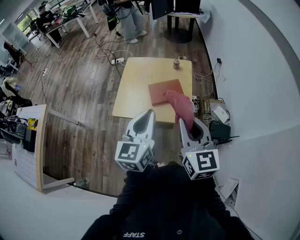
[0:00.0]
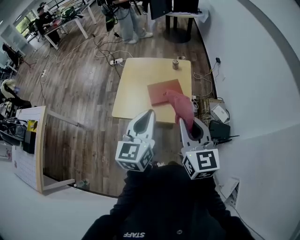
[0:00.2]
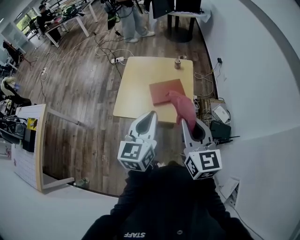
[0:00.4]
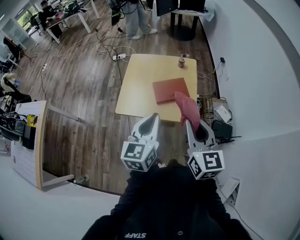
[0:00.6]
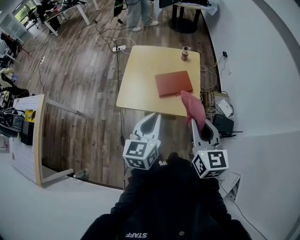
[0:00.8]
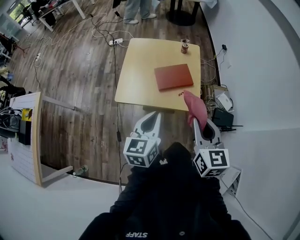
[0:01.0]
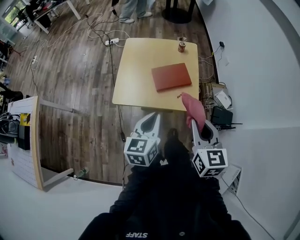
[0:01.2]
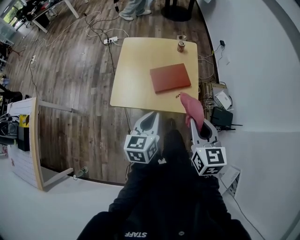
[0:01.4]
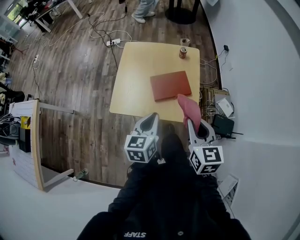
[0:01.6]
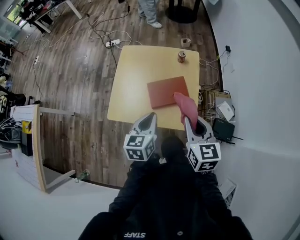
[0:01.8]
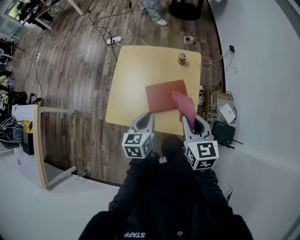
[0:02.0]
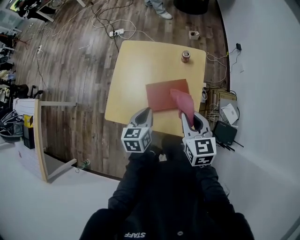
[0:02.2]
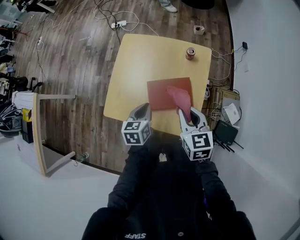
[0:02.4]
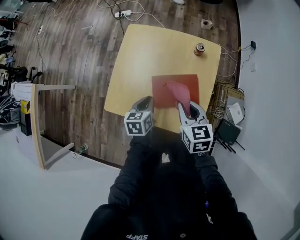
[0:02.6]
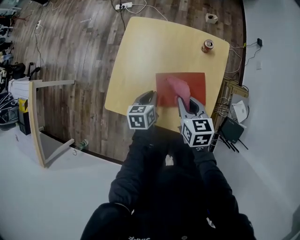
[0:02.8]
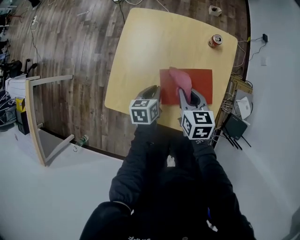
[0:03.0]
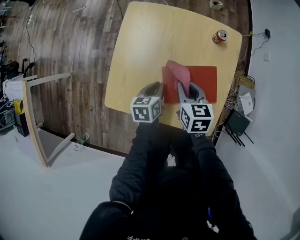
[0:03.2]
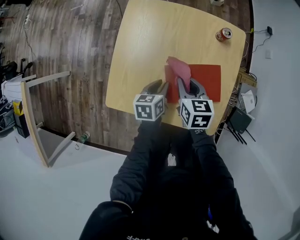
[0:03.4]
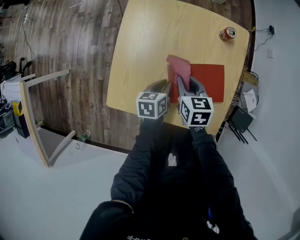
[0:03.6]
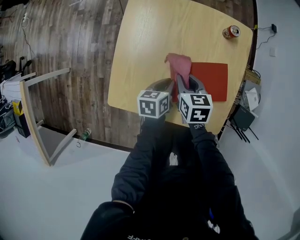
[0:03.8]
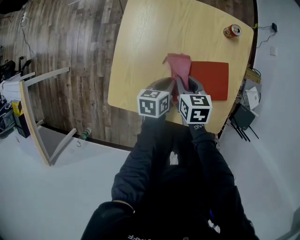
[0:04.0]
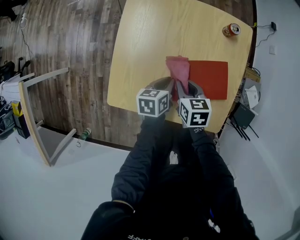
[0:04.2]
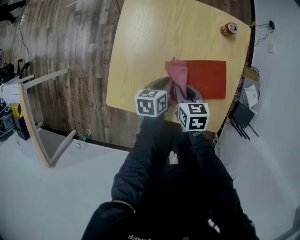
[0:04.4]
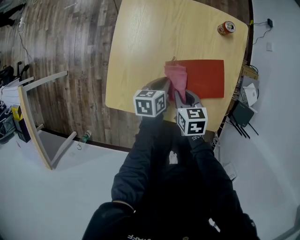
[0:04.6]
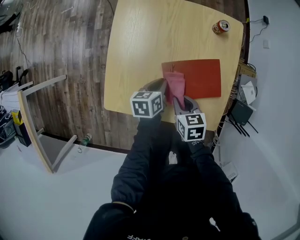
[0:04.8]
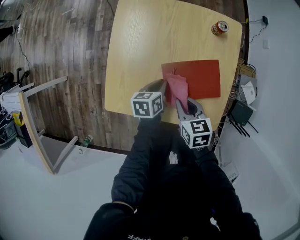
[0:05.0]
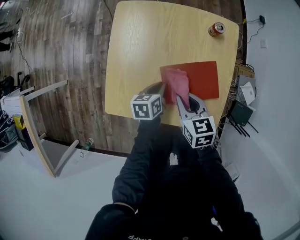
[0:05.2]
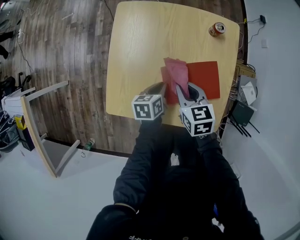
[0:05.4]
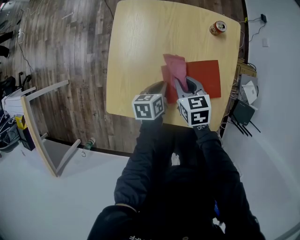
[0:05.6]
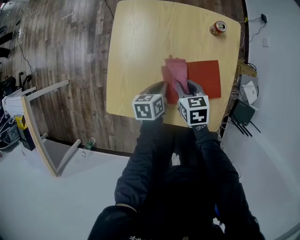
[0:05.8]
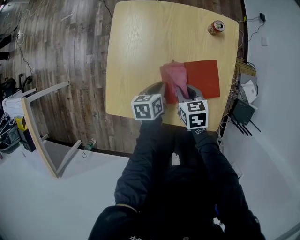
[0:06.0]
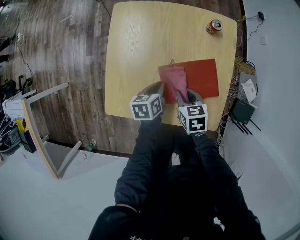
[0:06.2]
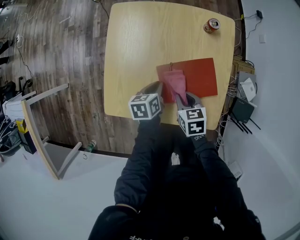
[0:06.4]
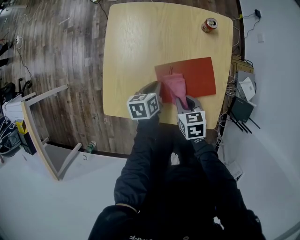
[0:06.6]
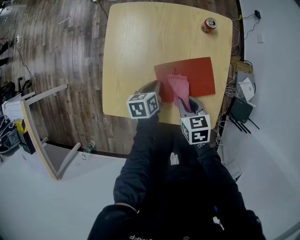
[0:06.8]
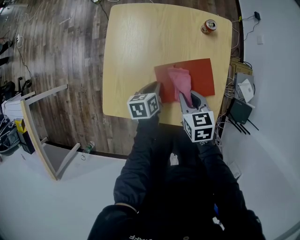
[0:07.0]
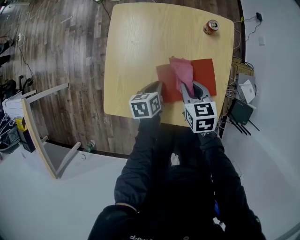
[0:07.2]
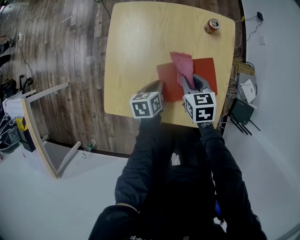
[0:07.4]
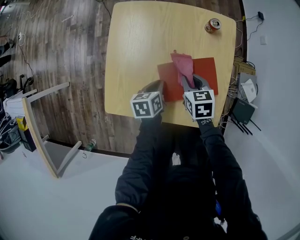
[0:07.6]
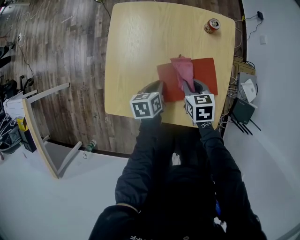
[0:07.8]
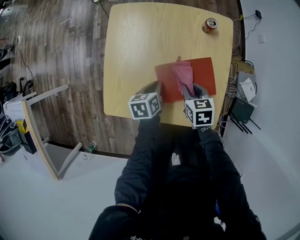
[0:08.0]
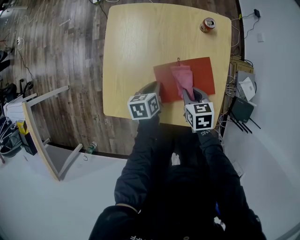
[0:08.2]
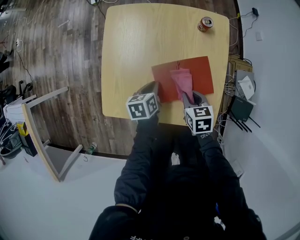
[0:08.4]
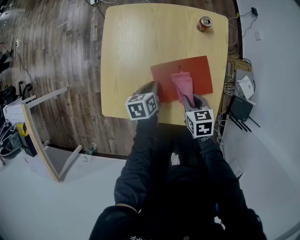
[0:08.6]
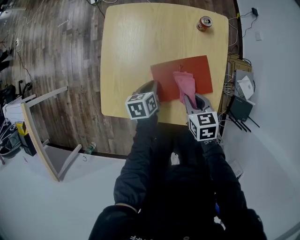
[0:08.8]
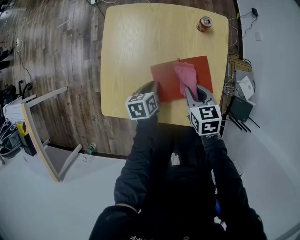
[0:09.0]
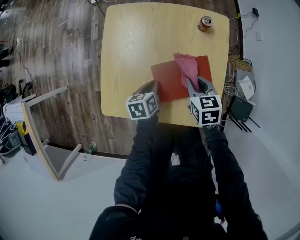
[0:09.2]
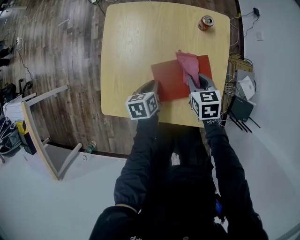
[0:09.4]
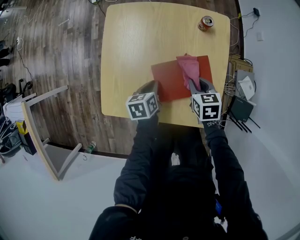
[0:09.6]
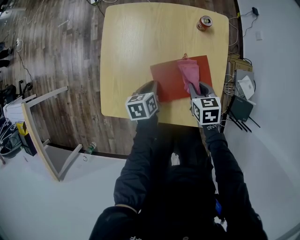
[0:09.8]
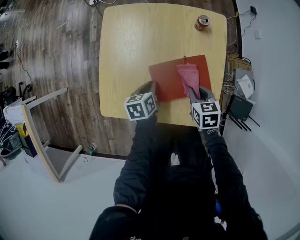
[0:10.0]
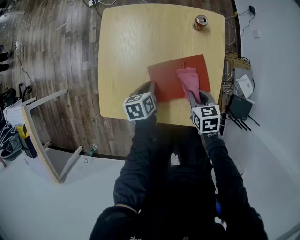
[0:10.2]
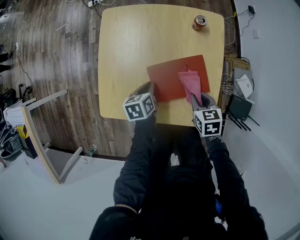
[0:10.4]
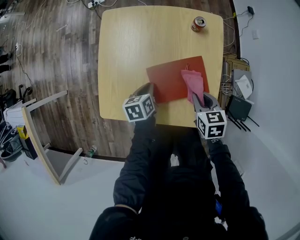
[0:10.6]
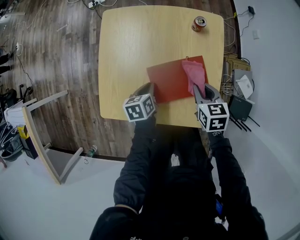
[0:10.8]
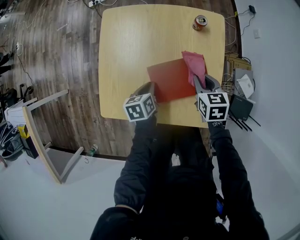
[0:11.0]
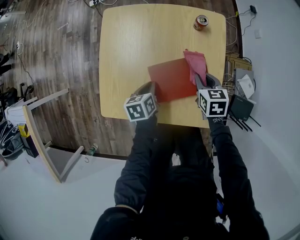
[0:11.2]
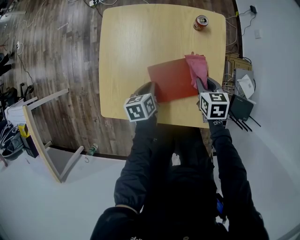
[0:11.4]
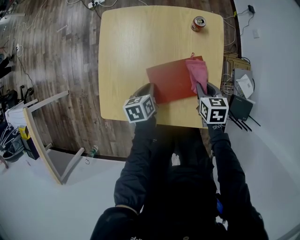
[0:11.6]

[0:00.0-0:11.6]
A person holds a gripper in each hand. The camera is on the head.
0:00.0 to 0:01.4: The grippers both shift downward by about 15 cm. The left gripper swivels roughly 20 degrees.
0:01.4 to 0:02.8: Both grippers travel together forward and downward, roughly 35 cm. The right gripper swivels approximately 20 degrees. The left gripper changes its angle by some 30 degrees.
0:02.8 to 0:04.4: The left gripper moves downward, approximately 10 cm; the right gripper shifts about 15 cm downward and to the left.
0:05.8 to 0:07.2: The right gripper ends up some 5 cm from where it was.
0:07.2 to 0:08.8: The right gripper moves backward, some 5 cm.
0:08.8 to 0:10.2: The right gripper moves some 10 cm forward and comes back.
0:10.2 to 0:11.6: The right gripper moves some 5 cm.

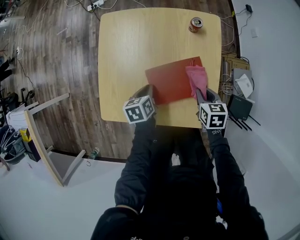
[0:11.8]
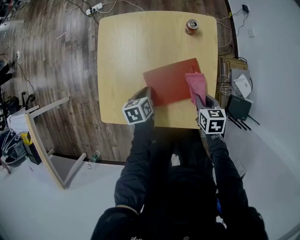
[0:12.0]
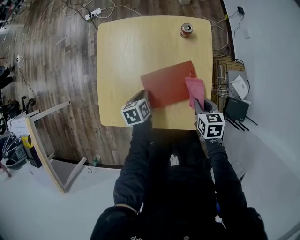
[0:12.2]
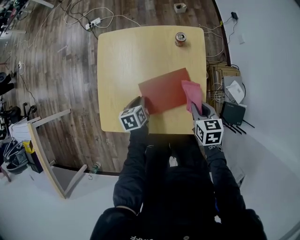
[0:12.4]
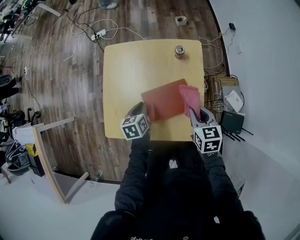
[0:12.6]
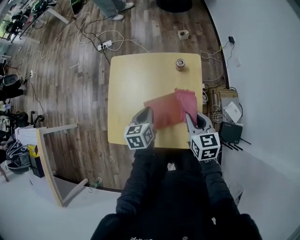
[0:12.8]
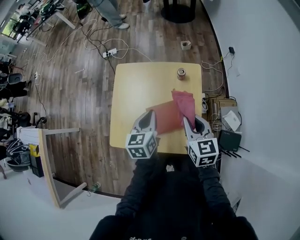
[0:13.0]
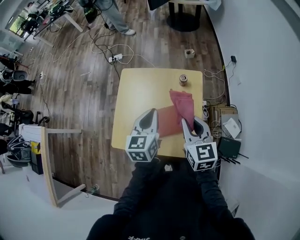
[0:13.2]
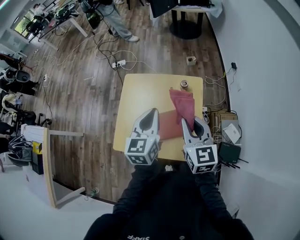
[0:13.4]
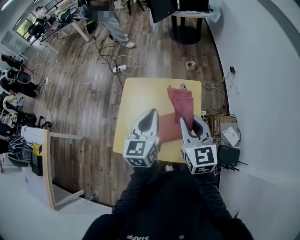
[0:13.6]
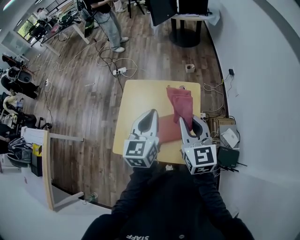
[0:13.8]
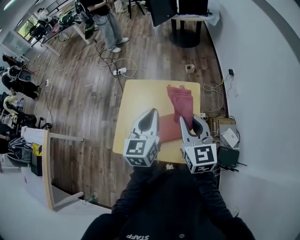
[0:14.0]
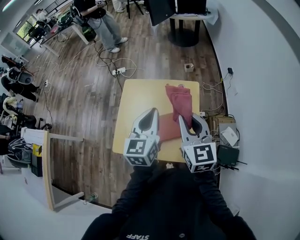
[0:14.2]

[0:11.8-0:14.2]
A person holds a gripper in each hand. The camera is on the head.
0:11.8 to 0:13.0: Both grippers move upward, some 25 cm. The right gripper rotates approximately 30 degrees. The left gripper swivels about 30 degrees.
0:13.0 to 0:14.2: Both grippers move upward, approximately 15 cm. The left gripper turns by about 20 degrees.

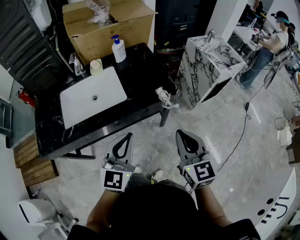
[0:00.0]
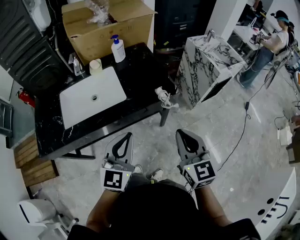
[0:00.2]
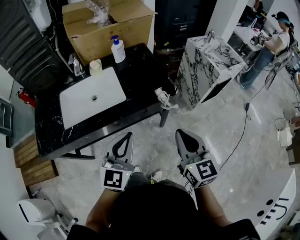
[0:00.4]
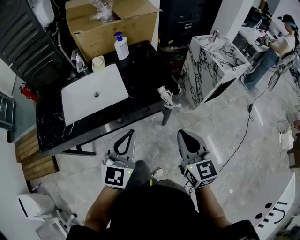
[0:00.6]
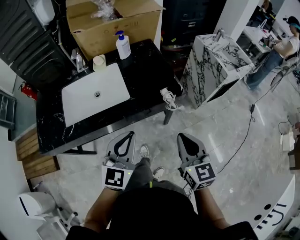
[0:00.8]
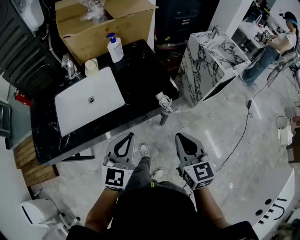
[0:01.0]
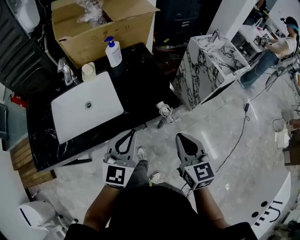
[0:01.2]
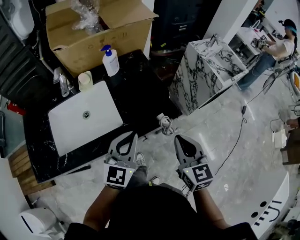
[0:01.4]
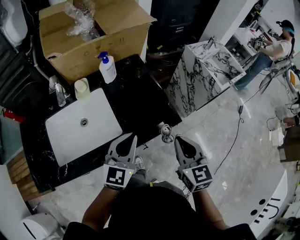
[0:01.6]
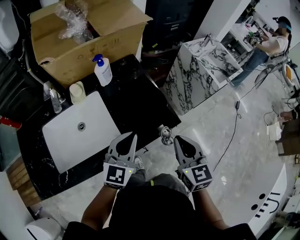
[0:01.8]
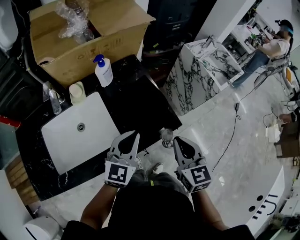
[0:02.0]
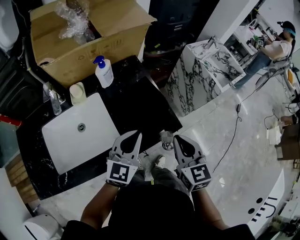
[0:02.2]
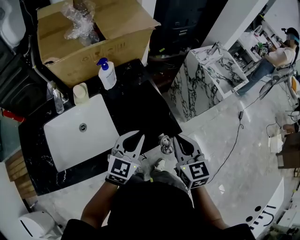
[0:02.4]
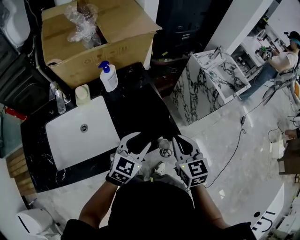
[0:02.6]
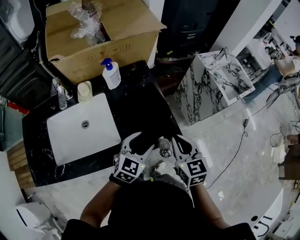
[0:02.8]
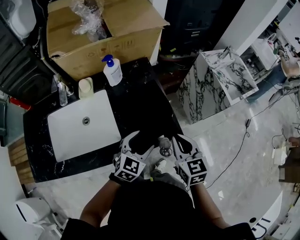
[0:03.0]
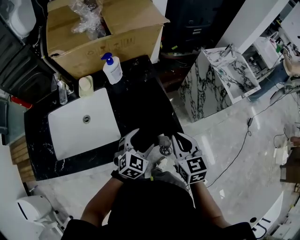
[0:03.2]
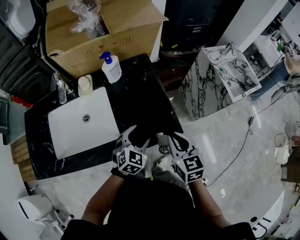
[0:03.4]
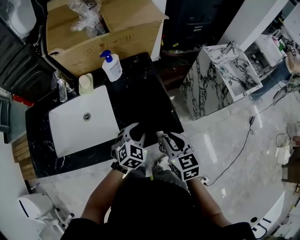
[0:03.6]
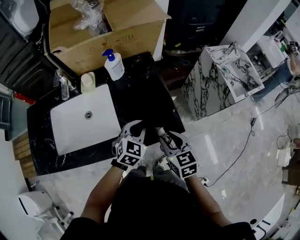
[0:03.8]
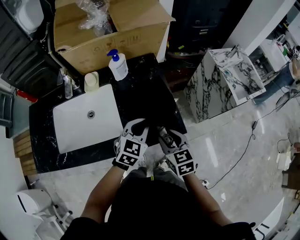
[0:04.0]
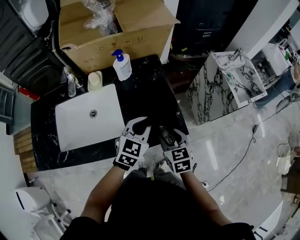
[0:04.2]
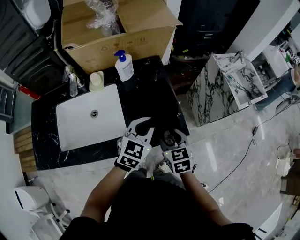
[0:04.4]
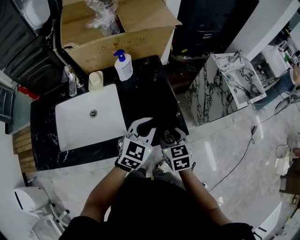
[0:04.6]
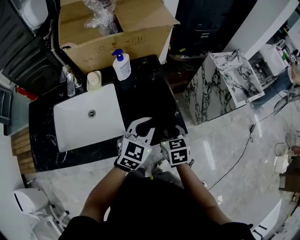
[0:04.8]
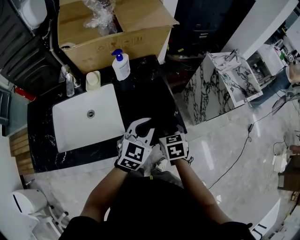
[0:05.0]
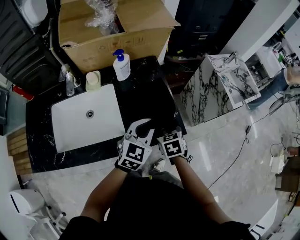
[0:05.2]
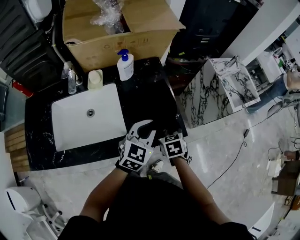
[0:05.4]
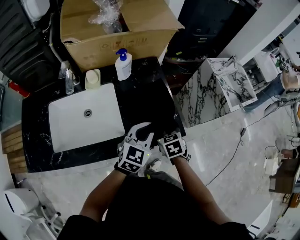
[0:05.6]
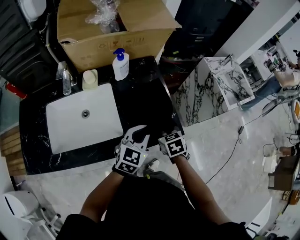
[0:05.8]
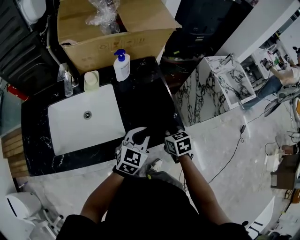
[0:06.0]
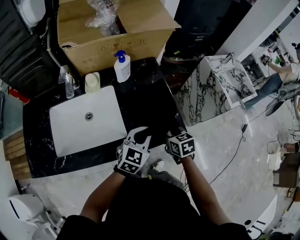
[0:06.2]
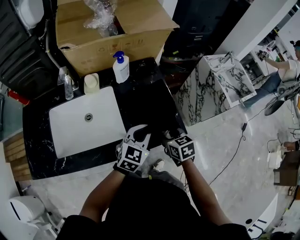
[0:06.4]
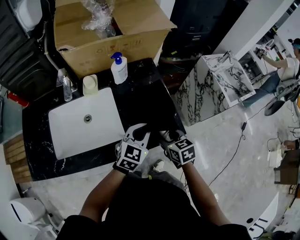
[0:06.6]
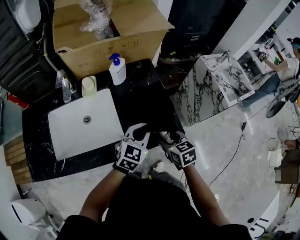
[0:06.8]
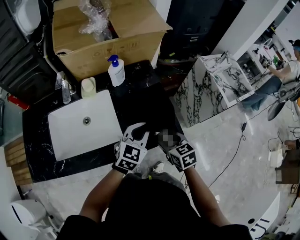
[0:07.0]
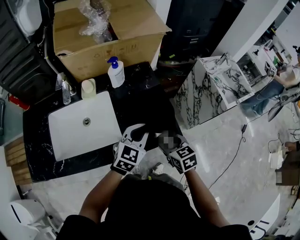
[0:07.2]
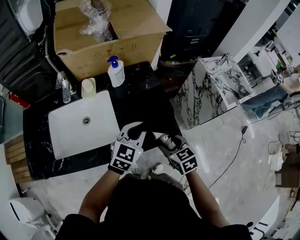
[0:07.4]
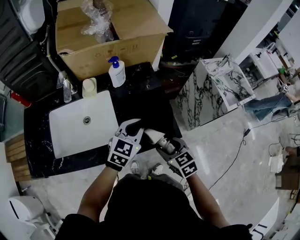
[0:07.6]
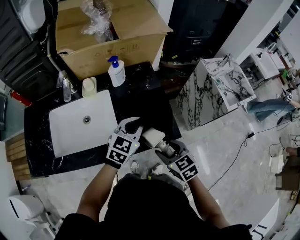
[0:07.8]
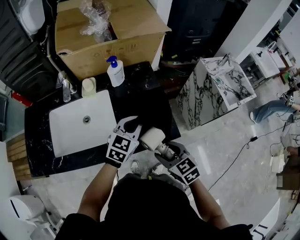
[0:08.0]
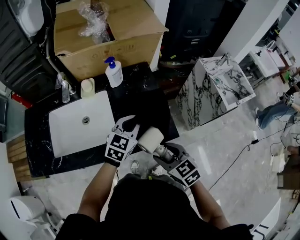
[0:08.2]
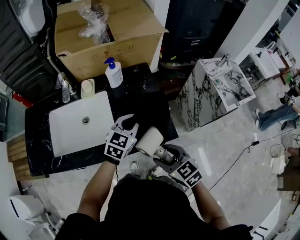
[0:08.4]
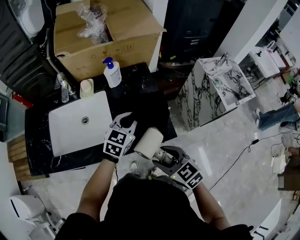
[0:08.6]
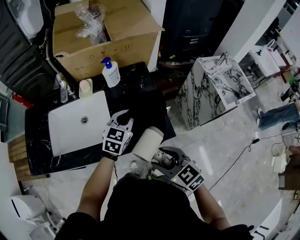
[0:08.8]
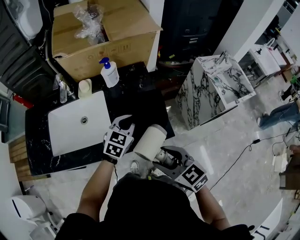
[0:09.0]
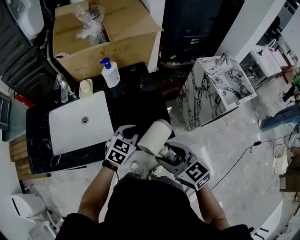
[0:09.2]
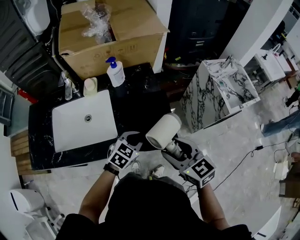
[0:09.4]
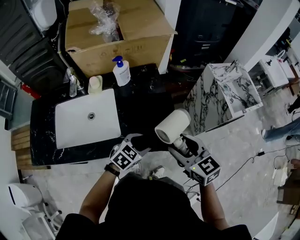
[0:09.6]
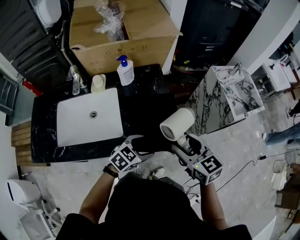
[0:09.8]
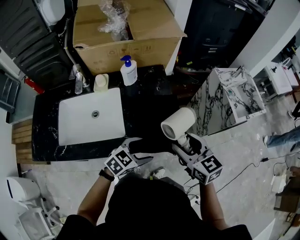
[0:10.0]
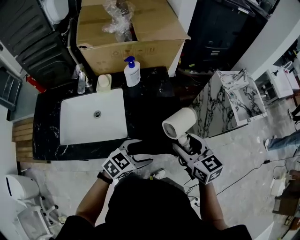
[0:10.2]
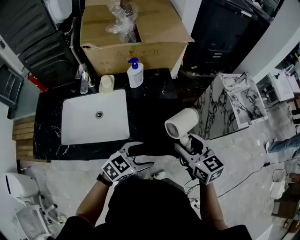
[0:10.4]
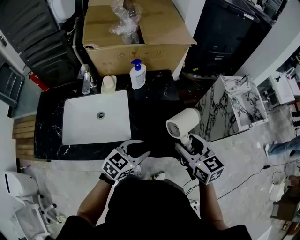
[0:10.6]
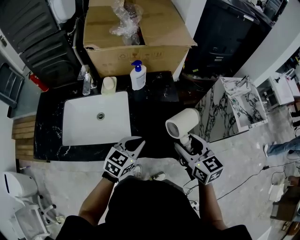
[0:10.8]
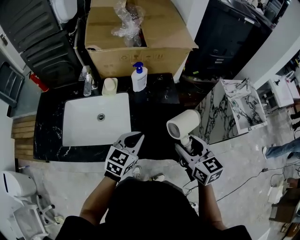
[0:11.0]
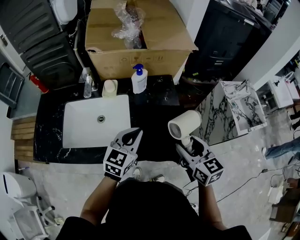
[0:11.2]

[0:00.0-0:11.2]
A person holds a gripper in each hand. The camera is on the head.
0:00.0 to 0:01.6: The two grippers go roughly 20 cm forward.
0:01.6 to 0:03.2: The right gripper travels forward and downward by some 10 cm. Meanwhile the left gripper is displaced downward and to the right by some 15 cm, changes its angle by approximately 30 degrees, and opens up.
0:03.2 to 0:04.8: The right gripper heads downward and to the left, covering about 10 cm, and opens its fingers. The left gripper moves upward, about 10 cm, and closes its fingers.
0:04.8 to 0:06.4: The left gripper travels downward by roughly 5 cm.
0:06.4 to 0:08.0: The left gripper ends up about 5 cm from where it was; the right gripper heads backward and upward, covering some 10 cm.
0:08.0 to 0:09.6: The left gripper shifts about 15 cm backward and downward, rotates roughly 20 degrees, and opens up. Meanwhile the right gripper is displaced upward and to the right by approximately 10 cm.
0:09.6 to 0:11.2: The left gripper is displaced upward, to the left and forward by roughly 20 cm, changes its angle by approximately 40 degrees, and closes up; the right gripper travels forward by some 5 cm.
